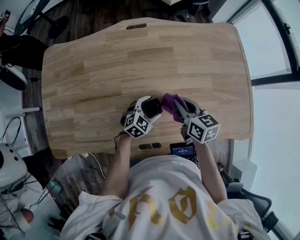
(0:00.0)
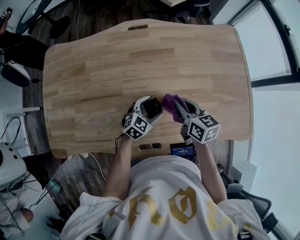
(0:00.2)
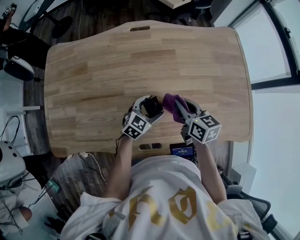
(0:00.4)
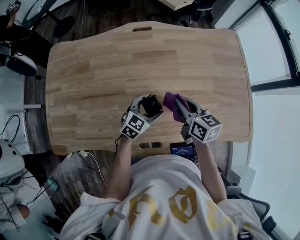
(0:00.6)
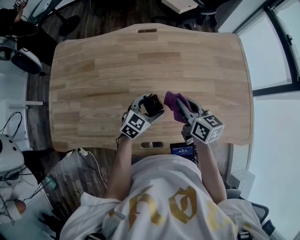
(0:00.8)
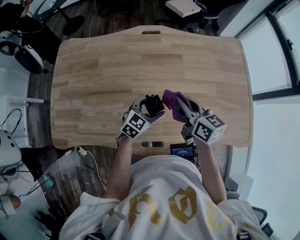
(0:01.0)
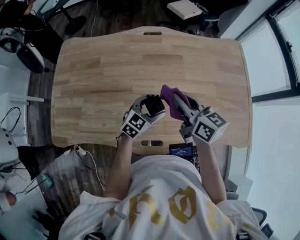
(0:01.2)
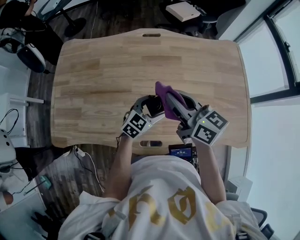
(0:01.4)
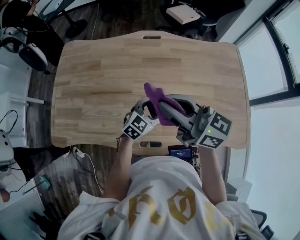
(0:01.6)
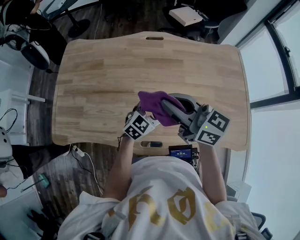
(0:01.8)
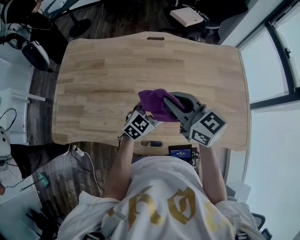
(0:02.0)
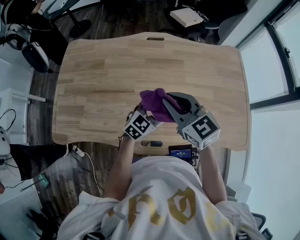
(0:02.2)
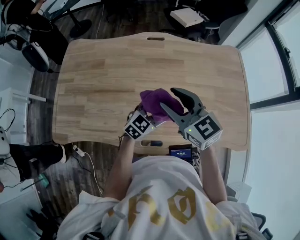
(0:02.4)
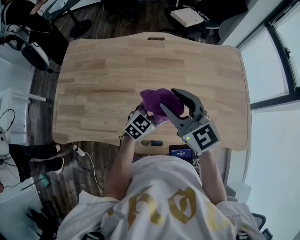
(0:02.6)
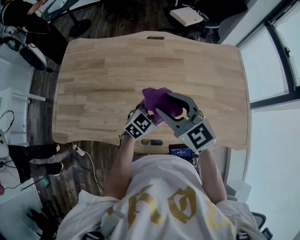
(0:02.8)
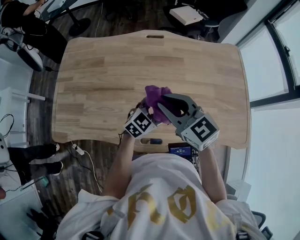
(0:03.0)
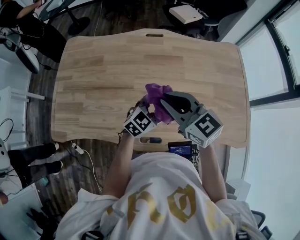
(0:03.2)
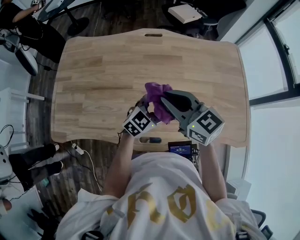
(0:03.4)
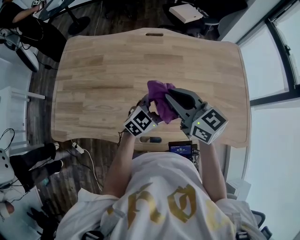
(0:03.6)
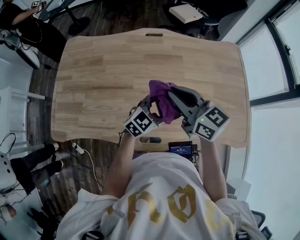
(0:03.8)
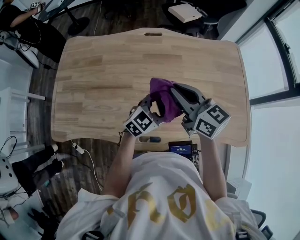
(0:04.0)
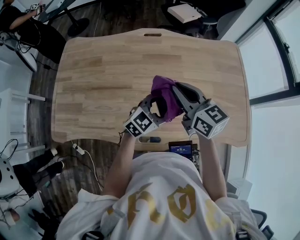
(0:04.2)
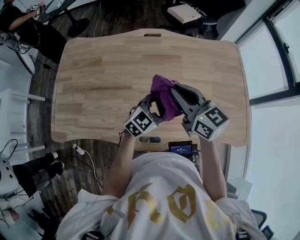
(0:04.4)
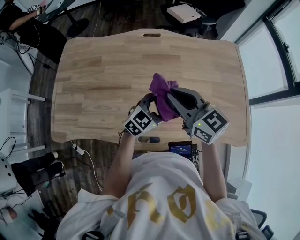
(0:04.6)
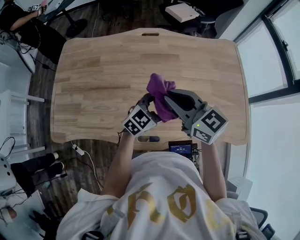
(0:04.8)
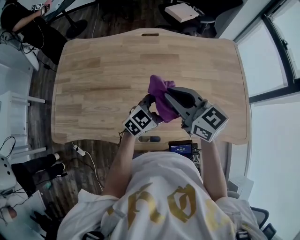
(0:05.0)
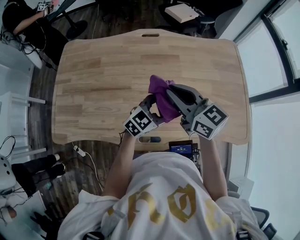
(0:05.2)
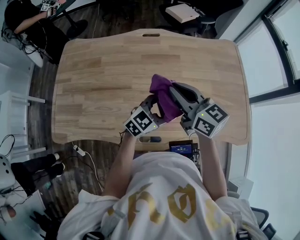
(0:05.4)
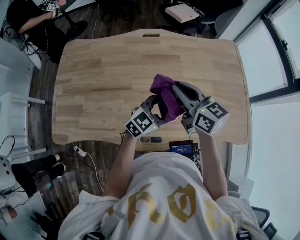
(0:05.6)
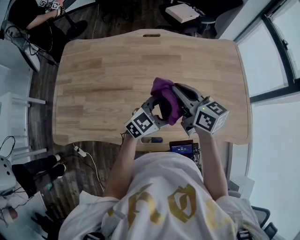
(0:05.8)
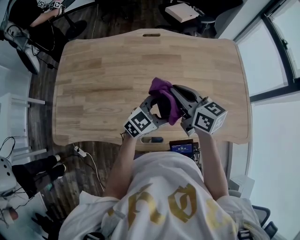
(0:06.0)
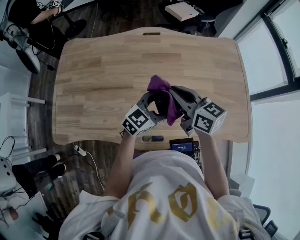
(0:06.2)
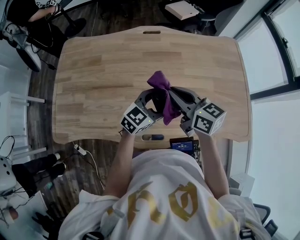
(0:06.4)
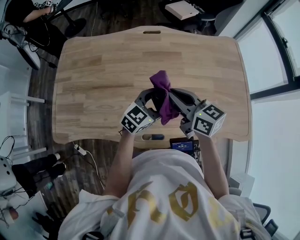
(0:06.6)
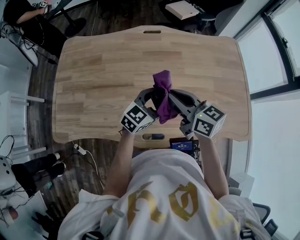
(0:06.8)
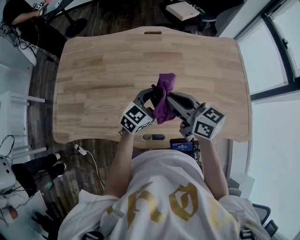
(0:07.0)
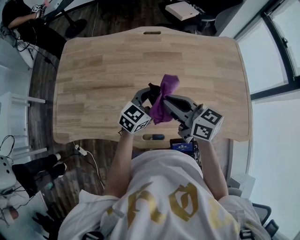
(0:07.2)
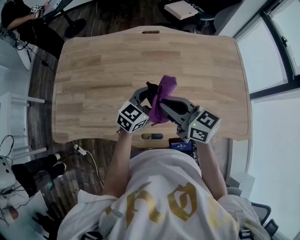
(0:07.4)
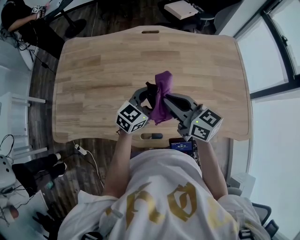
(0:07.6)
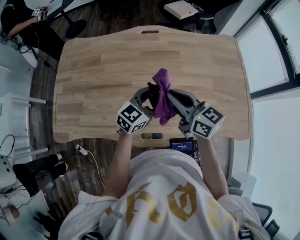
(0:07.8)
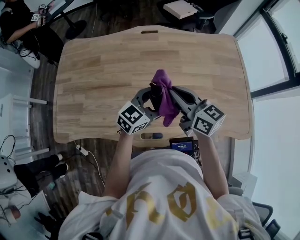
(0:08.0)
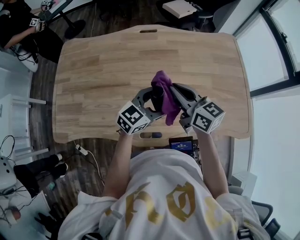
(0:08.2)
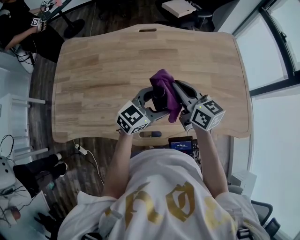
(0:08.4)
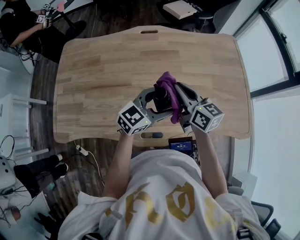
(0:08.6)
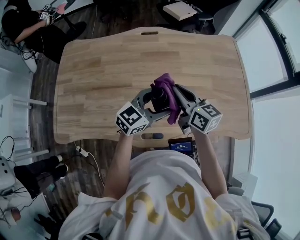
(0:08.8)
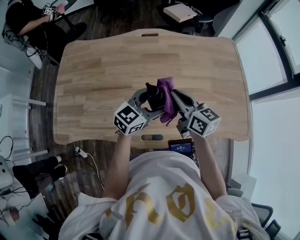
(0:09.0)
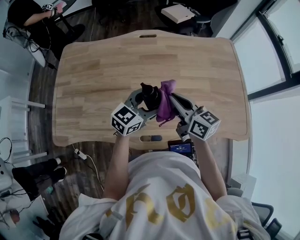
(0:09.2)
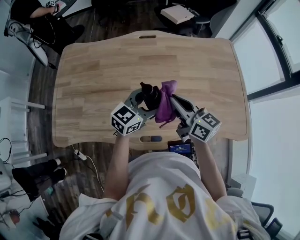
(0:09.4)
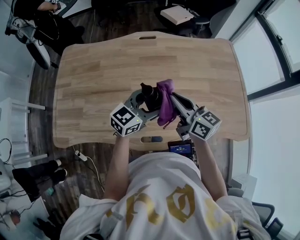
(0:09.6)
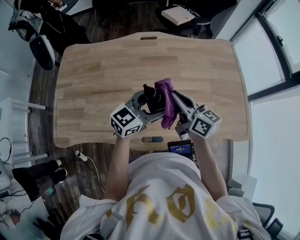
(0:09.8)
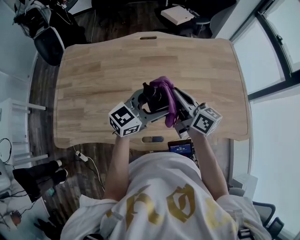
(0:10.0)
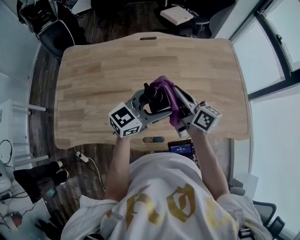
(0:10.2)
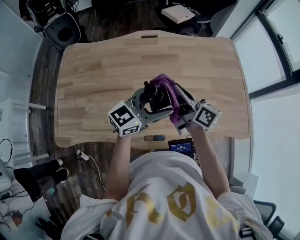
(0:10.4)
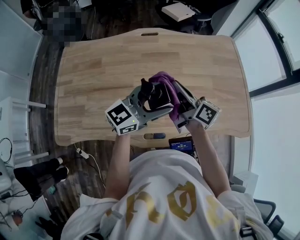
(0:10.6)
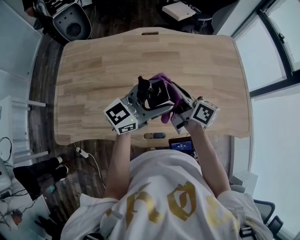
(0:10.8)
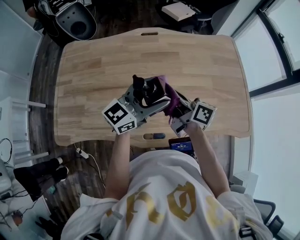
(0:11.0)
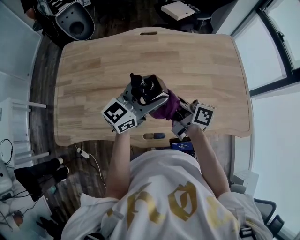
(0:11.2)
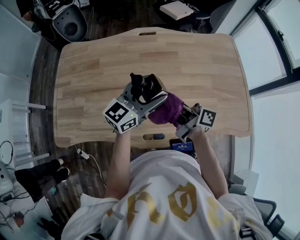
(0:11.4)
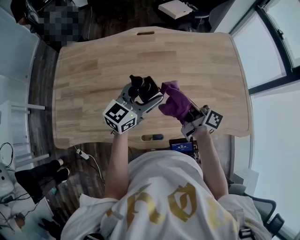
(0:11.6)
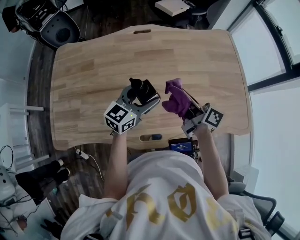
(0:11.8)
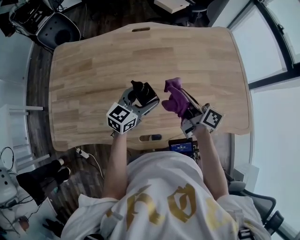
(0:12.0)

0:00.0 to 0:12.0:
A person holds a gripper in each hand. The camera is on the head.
0:00.0 to 0:01.6: The left gripper moves upward, approximately 10 cm. Meanwhile the right gripper heads upward and to the left, covering approximately 25 cm, and tilts its fingers about 30 degrees upward.
0:01.6 to 0:03.0: The right gripper travels downward by approximately 5 cm, swivels about 30 degrees, and opens and closes again.
0:03.0 to 0:04.4: The right gripper moves to the right, some 5 cm.
0:04.4 to 0:06.0: The grippers stay close to where they were, moving slightly.
0:06.0 to 0:07.6: The right gripper goes approximately 5 cm backward.
0:07.6 to 0:09.0: The right gripper changes place by roughly 5 cm.
0:09.0 to 0:10.4: The right gripper turns by some 20 degrees, while the left gripper heads upward, covering some 5 cm.
0:10.4 to 0:12.0: The right gripper goes about 10 cm downward and to the right; the left gripper heads downward, covering some 10 cm.

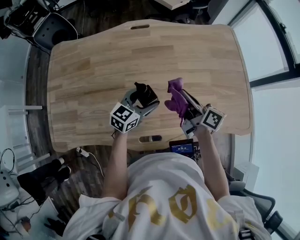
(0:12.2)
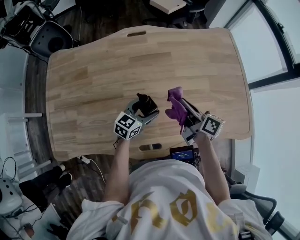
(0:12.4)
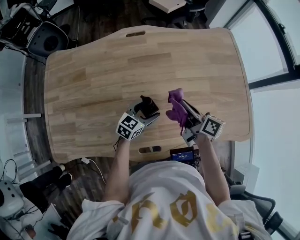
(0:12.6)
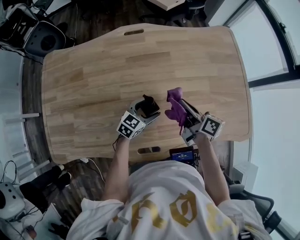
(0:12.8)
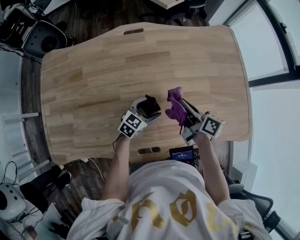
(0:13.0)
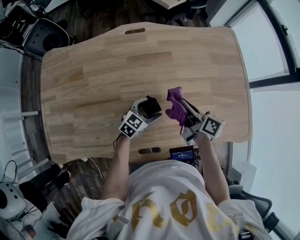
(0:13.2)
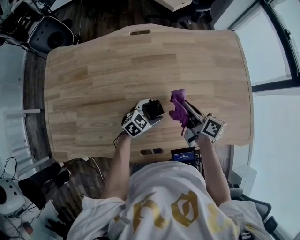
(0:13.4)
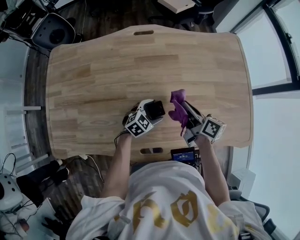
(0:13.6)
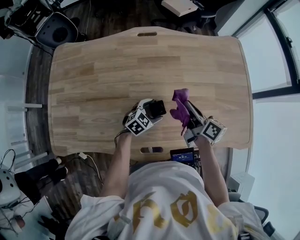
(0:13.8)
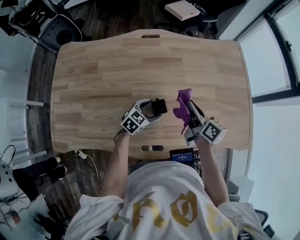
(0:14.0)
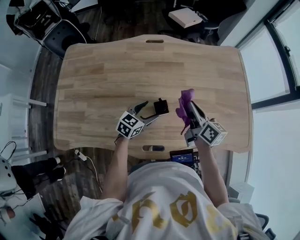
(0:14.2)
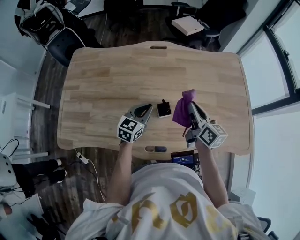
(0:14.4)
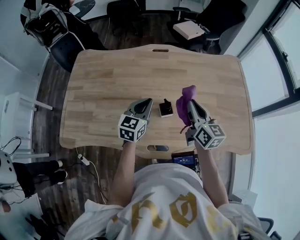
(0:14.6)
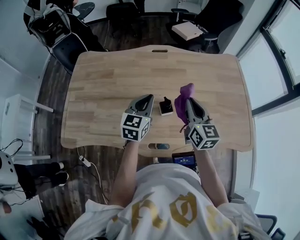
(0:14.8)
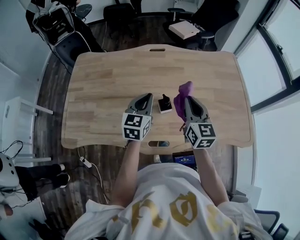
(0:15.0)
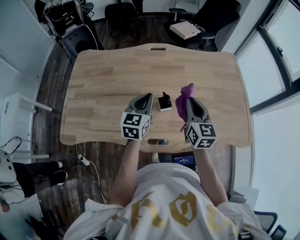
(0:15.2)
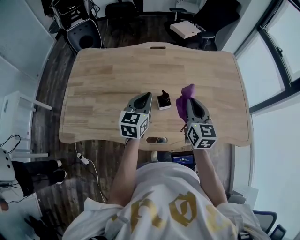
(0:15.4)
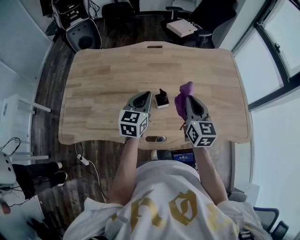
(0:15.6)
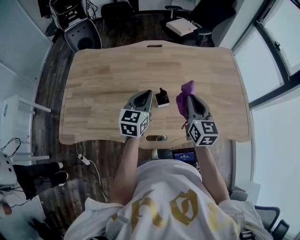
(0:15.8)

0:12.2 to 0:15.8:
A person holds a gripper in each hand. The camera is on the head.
0:12.2 to 0:14.0: The left gripper moves downward, some 10 cm.
0:14.0 to 0:15.8: The left gripper moves upward, roughly 20 cm, swivels about 40 degrees, and closes its fingers, while the right gripper is displaced upward and backward by roughly 15 cm, and twists about 40 degrees counterclockwise, seen from behind.

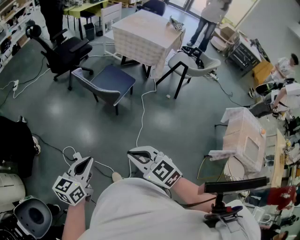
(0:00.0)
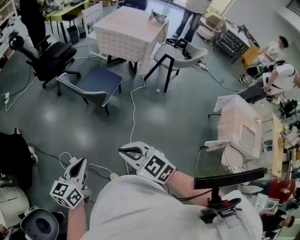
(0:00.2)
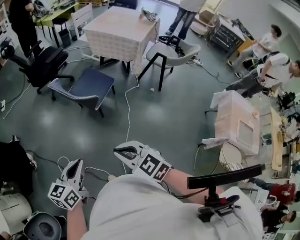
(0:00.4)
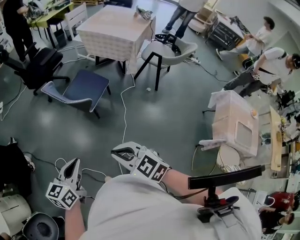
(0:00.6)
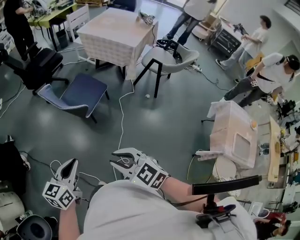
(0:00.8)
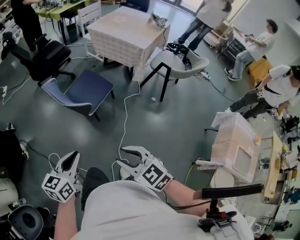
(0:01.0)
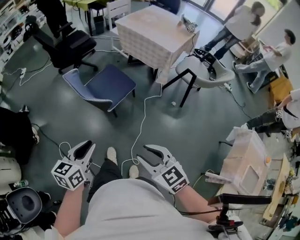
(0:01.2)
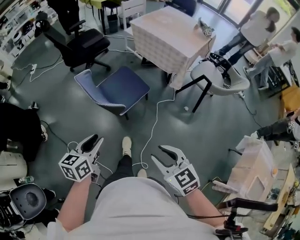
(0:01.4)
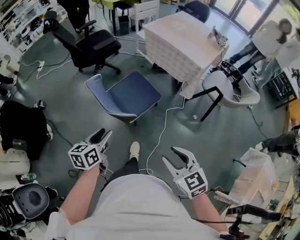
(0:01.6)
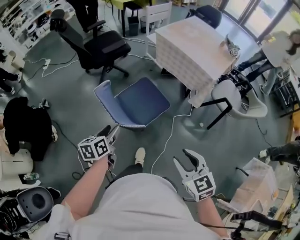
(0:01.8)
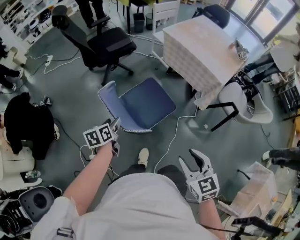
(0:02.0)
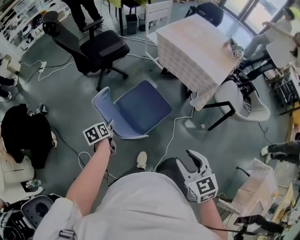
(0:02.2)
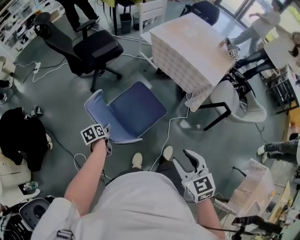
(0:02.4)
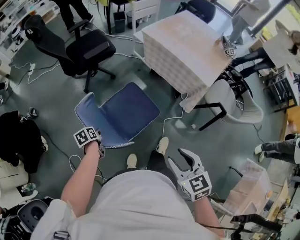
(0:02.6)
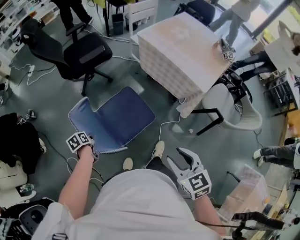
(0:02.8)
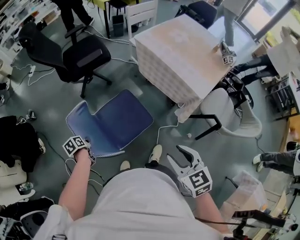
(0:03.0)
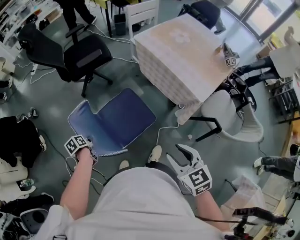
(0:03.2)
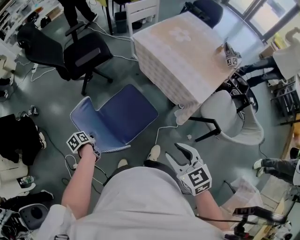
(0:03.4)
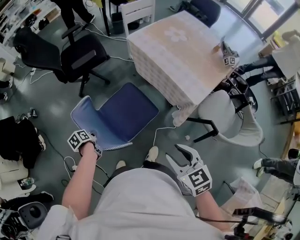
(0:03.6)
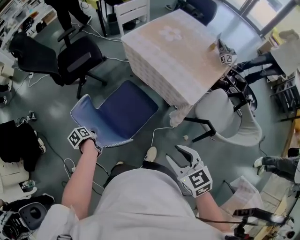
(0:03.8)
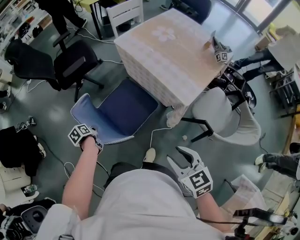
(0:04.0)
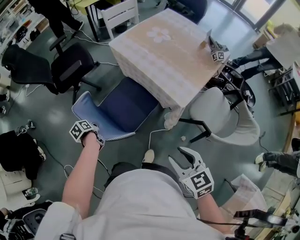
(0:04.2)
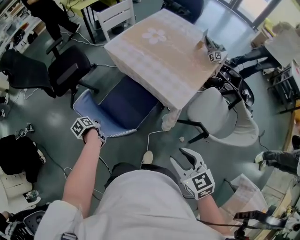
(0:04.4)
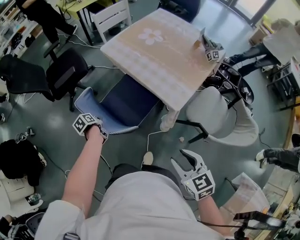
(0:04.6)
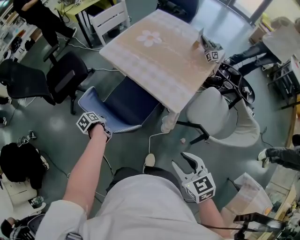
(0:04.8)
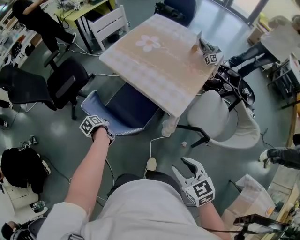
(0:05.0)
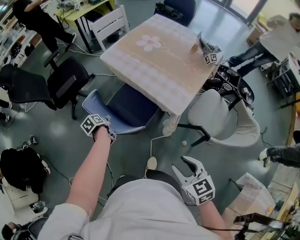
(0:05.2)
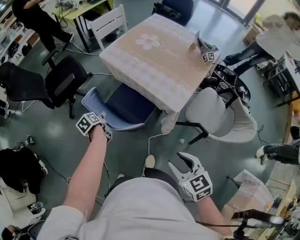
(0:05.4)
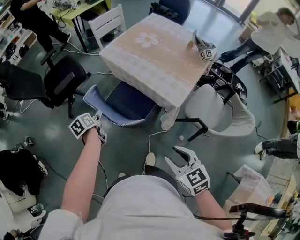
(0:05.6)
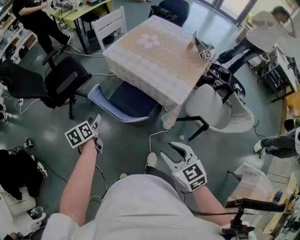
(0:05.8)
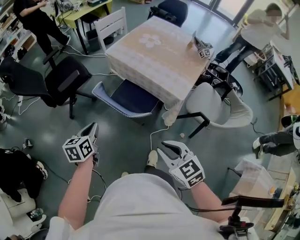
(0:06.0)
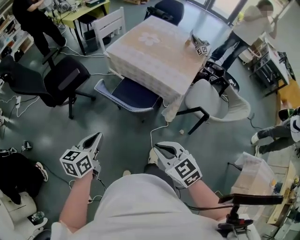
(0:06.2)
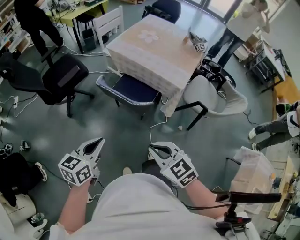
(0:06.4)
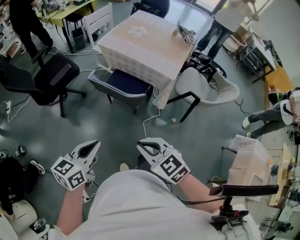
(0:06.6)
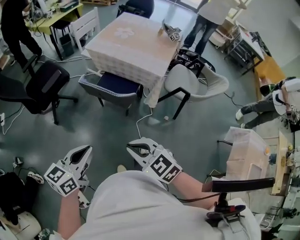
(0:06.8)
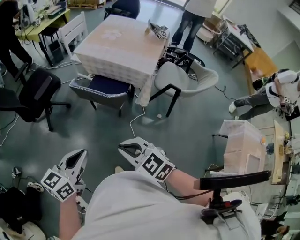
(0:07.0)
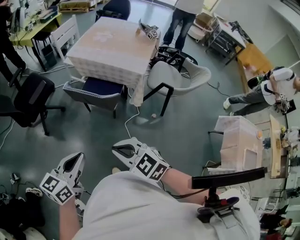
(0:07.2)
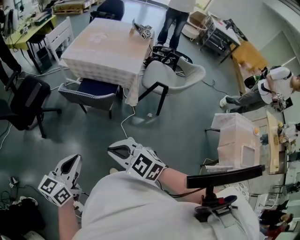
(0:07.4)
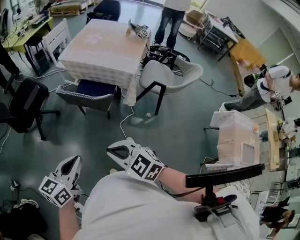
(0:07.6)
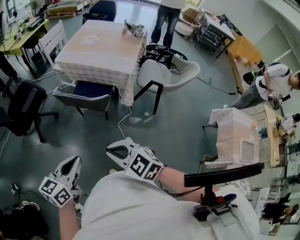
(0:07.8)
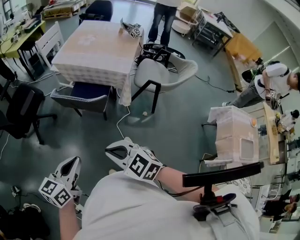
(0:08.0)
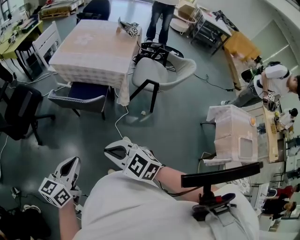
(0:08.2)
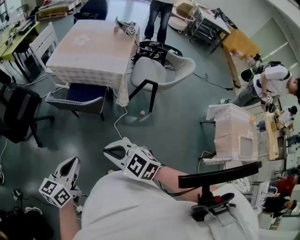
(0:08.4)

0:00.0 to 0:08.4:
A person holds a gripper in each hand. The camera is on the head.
0:00.0 to 0:01.4: The right gripper goes roughly 30 cm to the right and forward, and opens up. Meanwhile the left gripper heads forward and to the right, covering approximately 25 cm, and opens up.
0:01.4 to 0:02.8: The left gripper moves forward and downward, some 40 cm, angles its fingers downward, by some 30 degrees, and opens, then closes once more. The right gripper heads forward, covering roughly 30 cm.
0:02.8 to 0:04.2: The left gripper goes roughly 30 cm to the right and forward. The right gripper travels to the right by about 25 cm.
0:04.2 to 0:05.6: The left gripper moves upward, forward and to the right, approximately 15 cm, changes its angle by about 20 degrees, and opens.
0:05.6 to 0:07.0: The right gripper heads to the left and backward, covering some 30 cm, and closes up, while the left gripper goes approximately 40 cm backward and upward, swivels approximately 70 degrees, and closes.
0:07.0 to 0:08.4: The left gripper moves roughly 5 cm.
